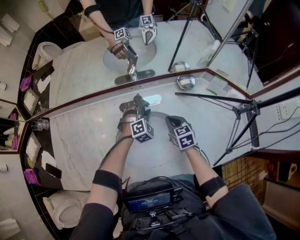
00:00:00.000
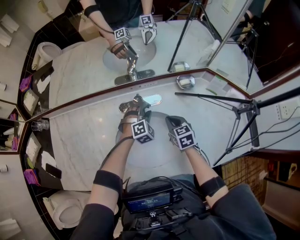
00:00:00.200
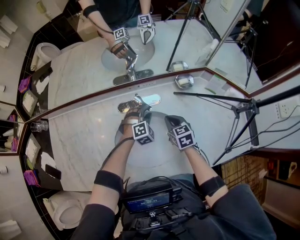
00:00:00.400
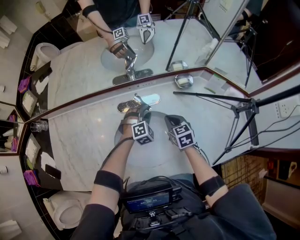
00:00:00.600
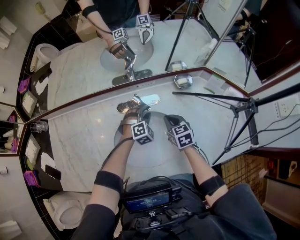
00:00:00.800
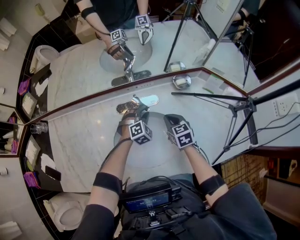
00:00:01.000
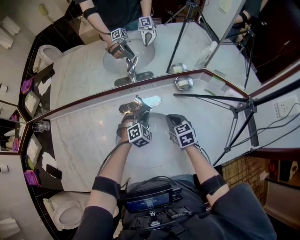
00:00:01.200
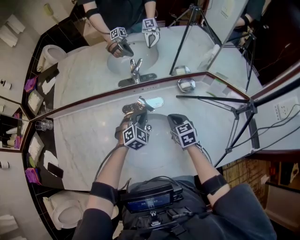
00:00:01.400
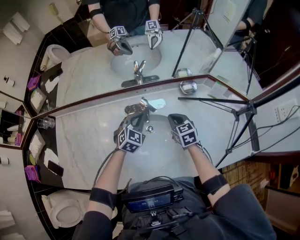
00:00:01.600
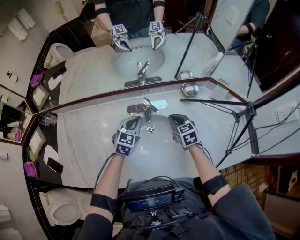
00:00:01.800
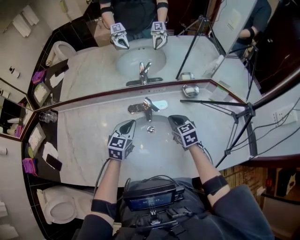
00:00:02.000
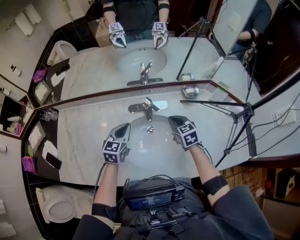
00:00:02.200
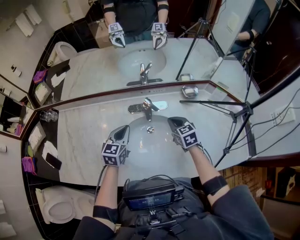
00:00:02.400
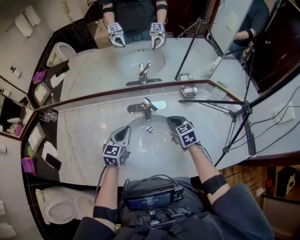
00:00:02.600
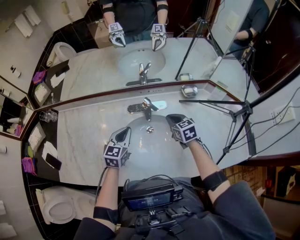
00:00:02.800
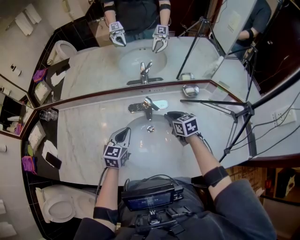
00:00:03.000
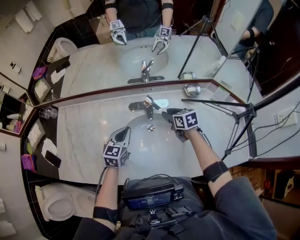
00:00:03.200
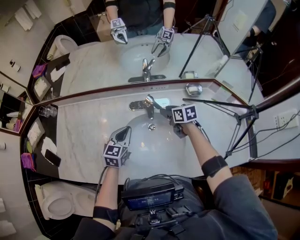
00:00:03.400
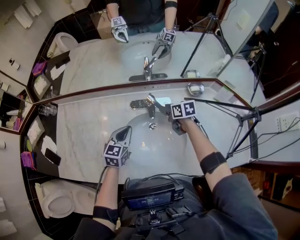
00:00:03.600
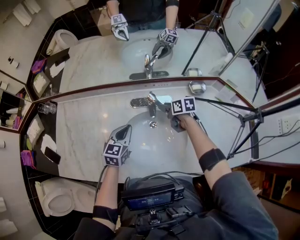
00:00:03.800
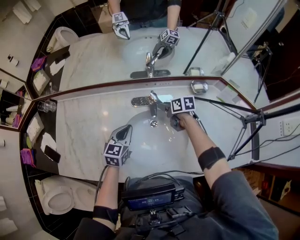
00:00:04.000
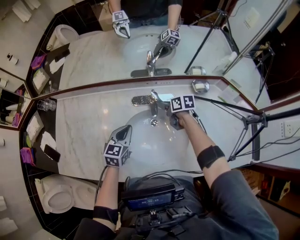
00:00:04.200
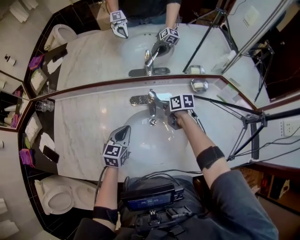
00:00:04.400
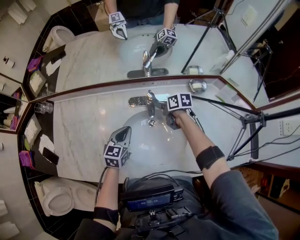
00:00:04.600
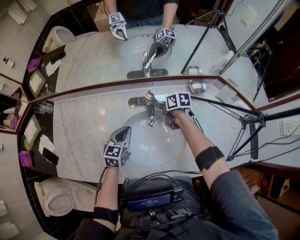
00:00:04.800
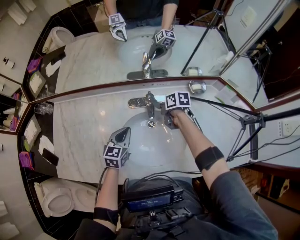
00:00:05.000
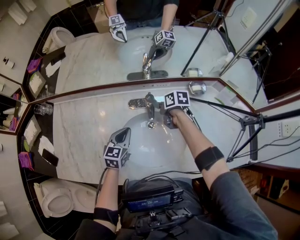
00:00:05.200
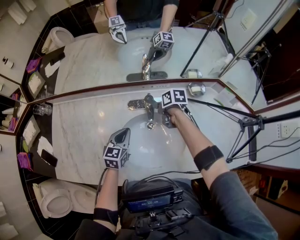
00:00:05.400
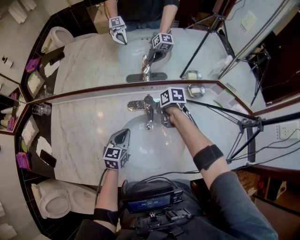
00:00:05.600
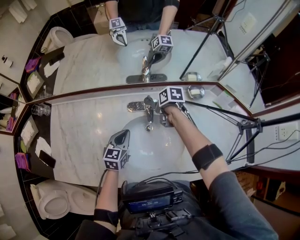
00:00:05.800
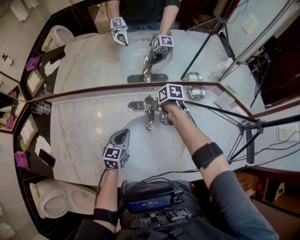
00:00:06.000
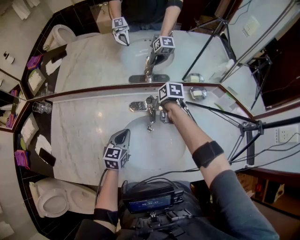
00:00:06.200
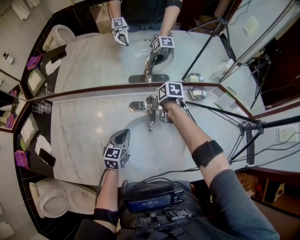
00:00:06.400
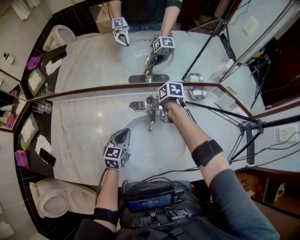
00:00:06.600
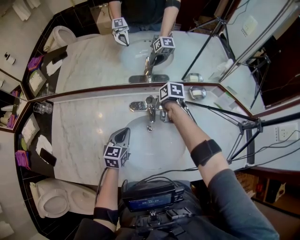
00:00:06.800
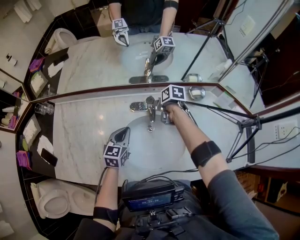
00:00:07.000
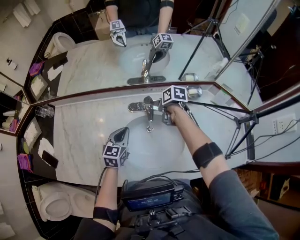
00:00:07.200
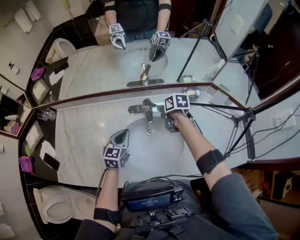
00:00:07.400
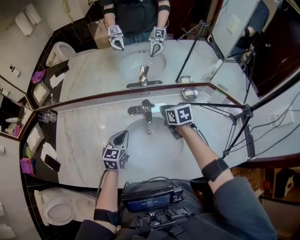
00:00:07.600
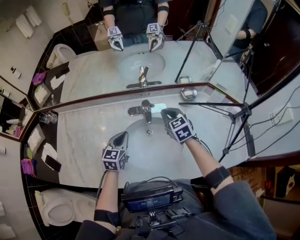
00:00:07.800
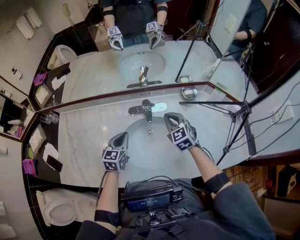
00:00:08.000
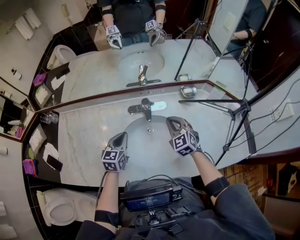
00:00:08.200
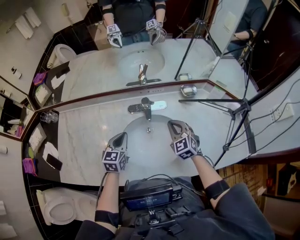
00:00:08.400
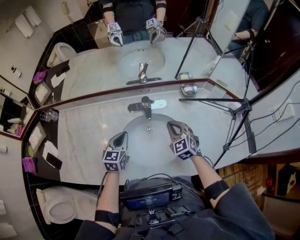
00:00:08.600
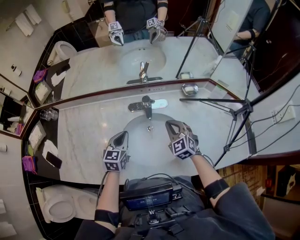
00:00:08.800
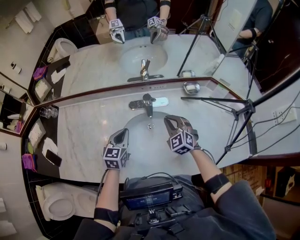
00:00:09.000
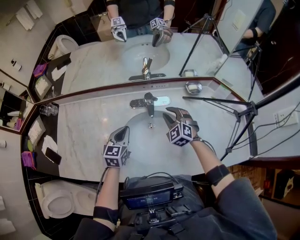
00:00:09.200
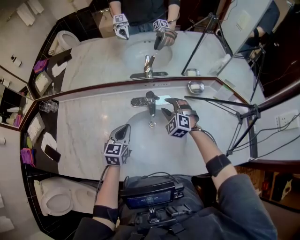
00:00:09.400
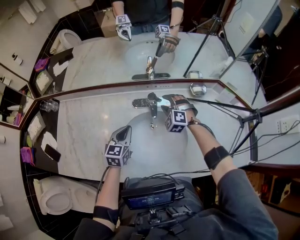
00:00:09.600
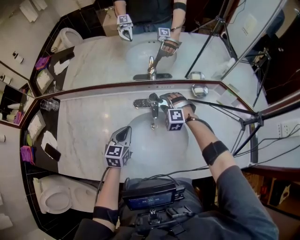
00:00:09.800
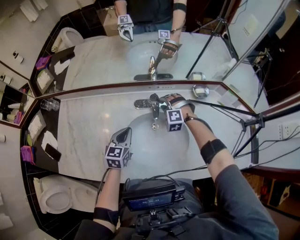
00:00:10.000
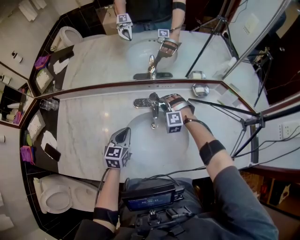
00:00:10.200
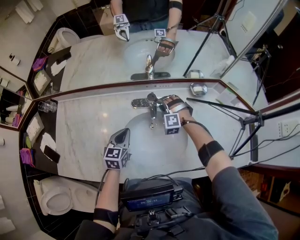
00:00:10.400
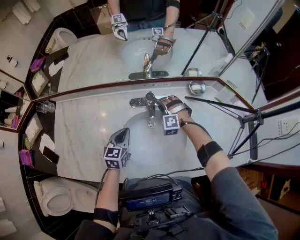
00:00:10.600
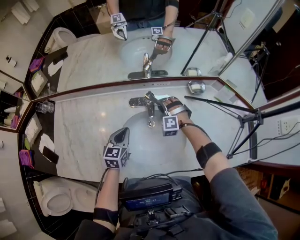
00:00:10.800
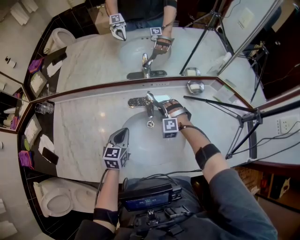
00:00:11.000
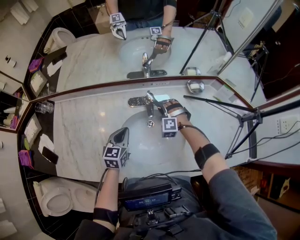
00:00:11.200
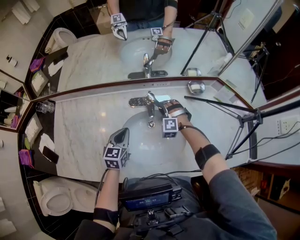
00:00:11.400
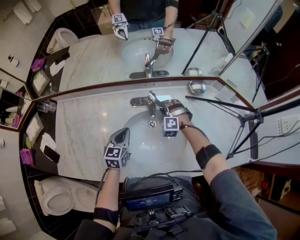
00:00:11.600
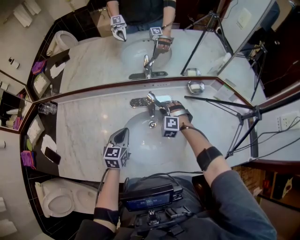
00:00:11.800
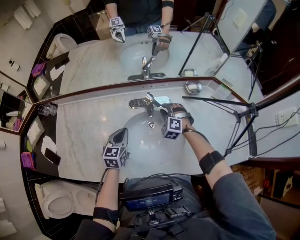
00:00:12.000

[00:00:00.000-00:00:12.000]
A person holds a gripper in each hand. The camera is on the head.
00:00:00.000 to 00:00:01.600: The left gripper travels upward and to the left by about 10 cm, rotates about 30 degrees, and closes up.
00:00:01.600 to 00:00:03.000: The left gripper travels to the left and backward by some 15 cm, and changes its angle by some 30 degrees.
00:00:03.000 to 00:00:04.400: The left gripper moves about 5 cm. Meanwhile the right gripper heads forward and downward, covering about 10 cm, turns by roughly 30 degrees, and opens, then closes once more.
00:00:04.400 to 00:00:06.000: The right gripper swivels roughly 20 degrees.
00:00:06.000 to 00:00:07.600: The right gripper shifts roughly 10 cm upward and backward, and changes its angle by some 30 degrees, while the left gripper shifts by some 5 cm.
00:00:07.600 to 00:00:09.000: The right gripper shifts about 10 cm backward, and rolls counterclockwise, seen from behind, by roughly 50 degrees.
00:00:09.000 to 00:00:10.400: The right gripper heads forward and downward, covering roughly 15 cm, rotates around the line of its fingers by some 50 degrees, counterclockwise from behind, and opens its fingers.
00:00:10.400 to 00:00:12.000: The right gripper ends up approximately 5 cm from where it was, and changes its angle by about 20 degrees.

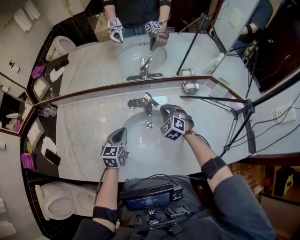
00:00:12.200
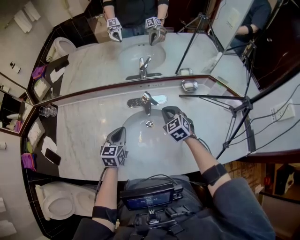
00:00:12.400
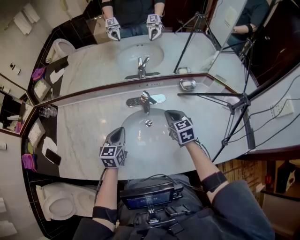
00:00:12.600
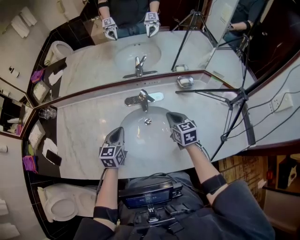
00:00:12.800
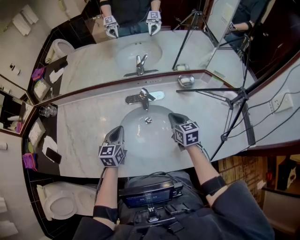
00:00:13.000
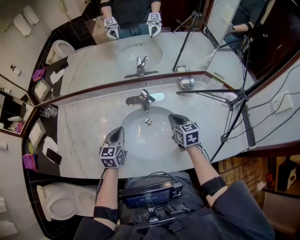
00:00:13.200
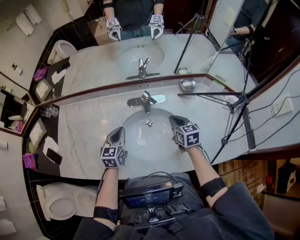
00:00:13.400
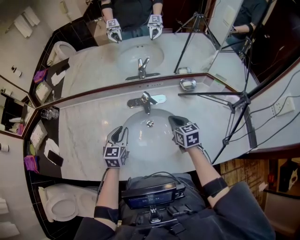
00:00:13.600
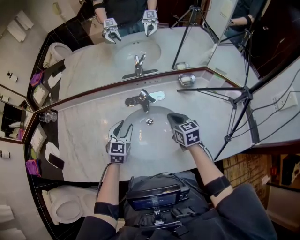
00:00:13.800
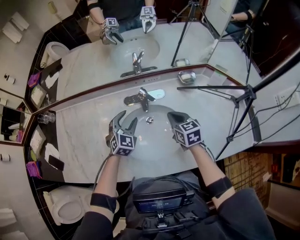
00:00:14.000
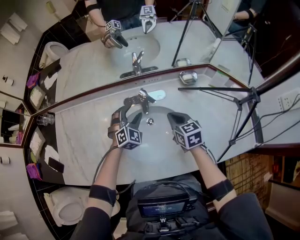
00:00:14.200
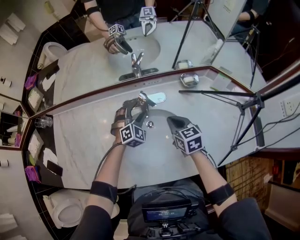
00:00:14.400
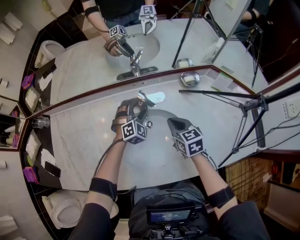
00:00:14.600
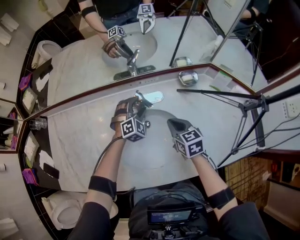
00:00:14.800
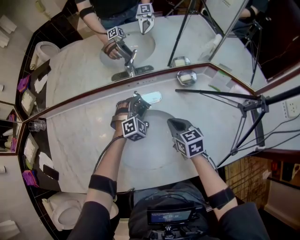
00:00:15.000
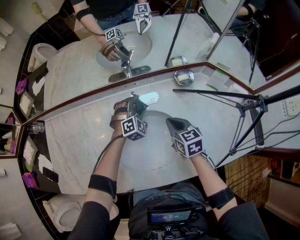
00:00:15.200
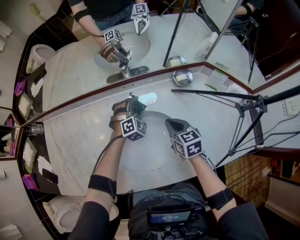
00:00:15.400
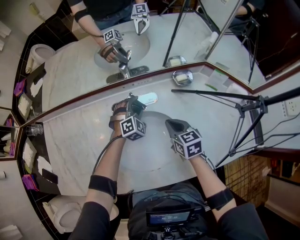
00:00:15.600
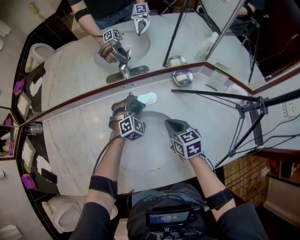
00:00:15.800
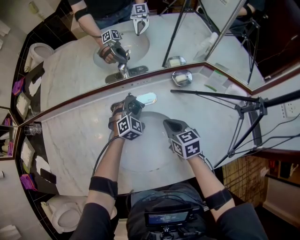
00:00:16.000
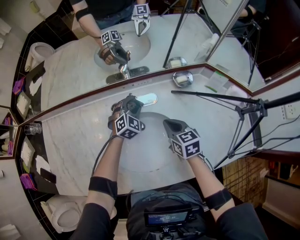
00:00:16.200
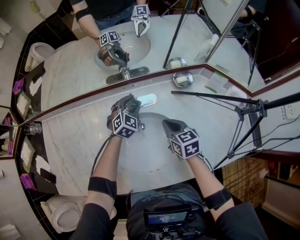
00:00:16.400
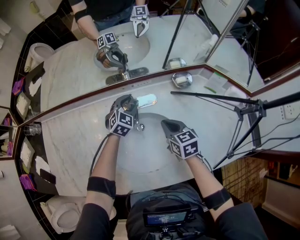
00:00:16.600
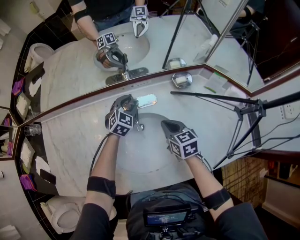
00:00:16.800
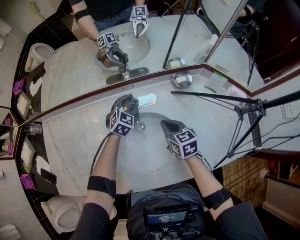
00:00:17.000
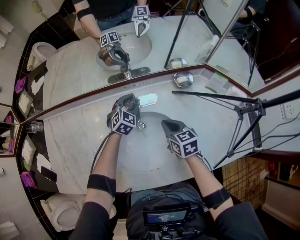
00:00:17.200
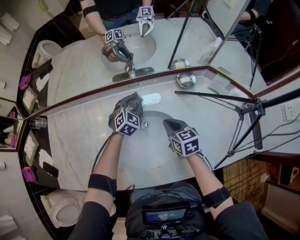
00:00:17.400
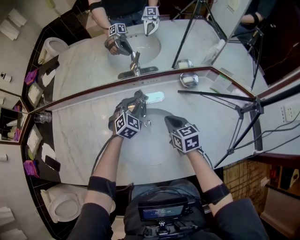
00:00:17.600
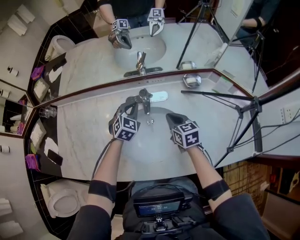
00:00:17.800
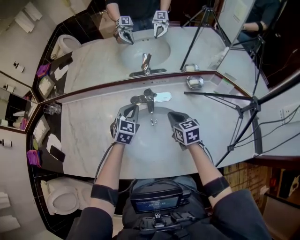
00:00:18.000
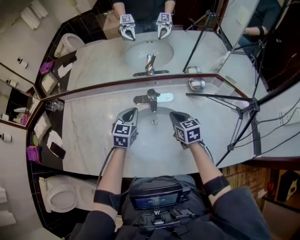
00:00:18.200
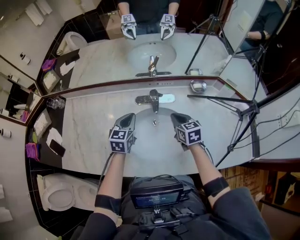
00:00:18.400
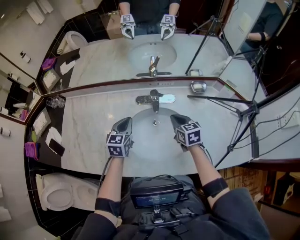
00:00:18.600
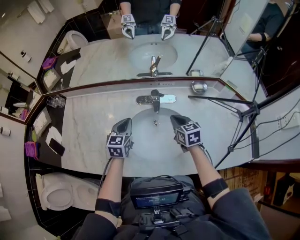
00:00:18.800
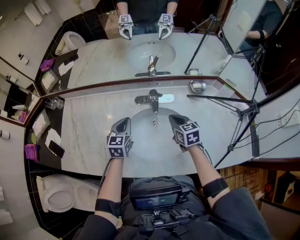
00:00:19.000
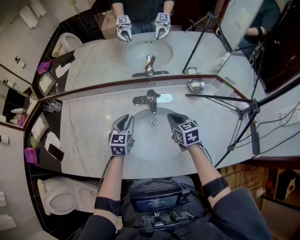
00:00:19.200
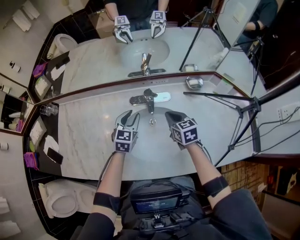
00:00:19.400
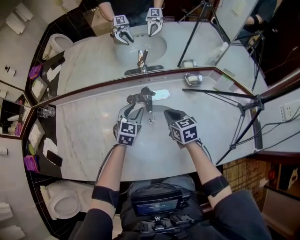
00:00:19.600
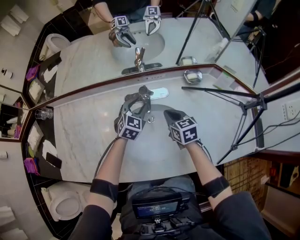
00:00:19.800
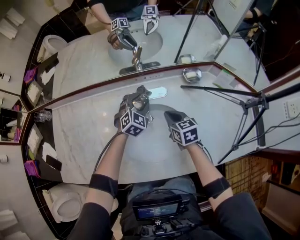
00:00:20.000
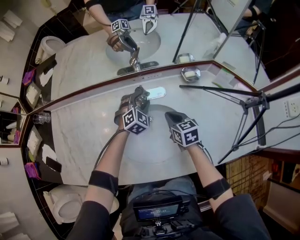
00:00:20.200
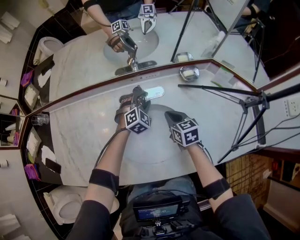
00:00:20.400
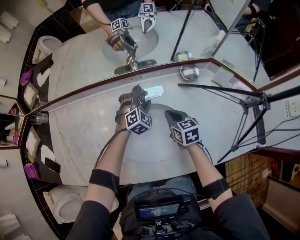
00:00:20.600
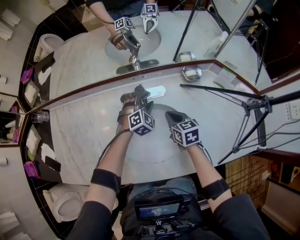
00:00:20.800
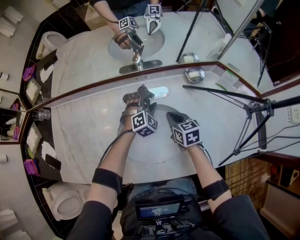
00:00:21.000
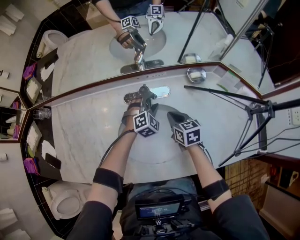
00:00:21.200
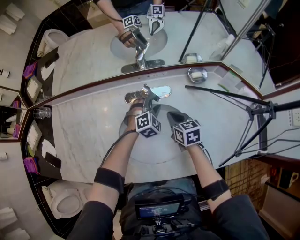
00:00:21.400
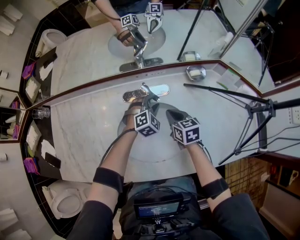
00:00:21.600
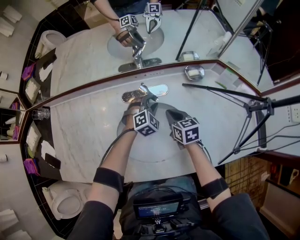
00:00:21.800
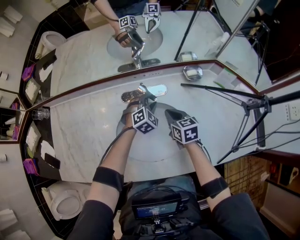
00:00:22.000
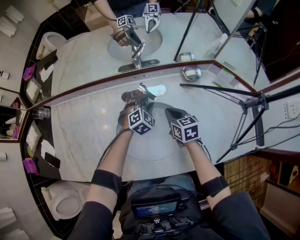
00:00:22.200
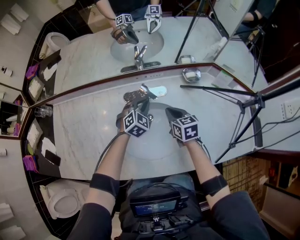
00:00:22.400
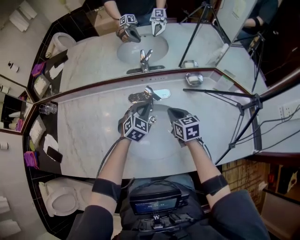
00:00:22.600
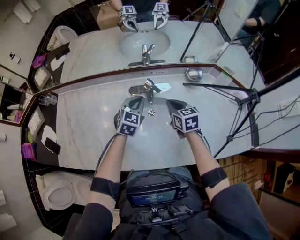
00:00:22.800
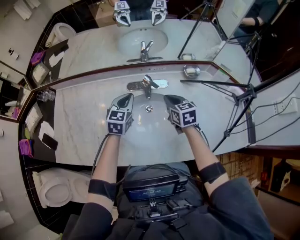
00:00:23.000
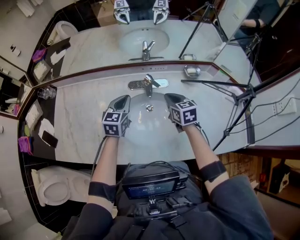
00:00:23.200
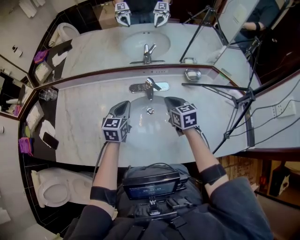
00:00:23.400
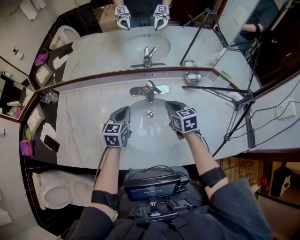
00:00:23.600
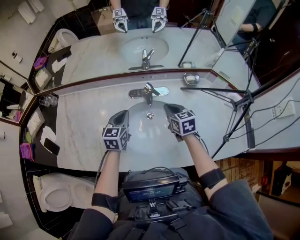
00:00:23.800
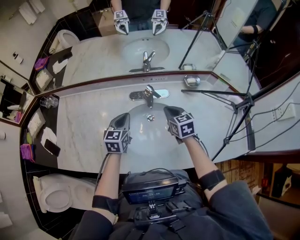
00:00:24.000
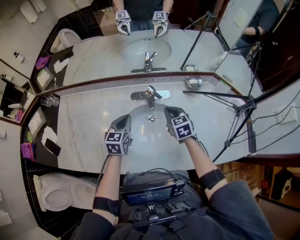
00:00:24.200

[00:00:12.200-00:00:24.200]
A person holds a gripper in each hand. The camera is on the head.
00:00:12.200 to 00:00:13.800: The right gripper goes approximately 10 cm backward, and twists some 50 degrees clockwise, seen from behind; the left gripper opens up.
00:00:13.800 to 00:00:15.200: The right gripper ends up approximately 5 cm from where it was, while the left gripper is displaced to the right, forward and downward by approximately 25 cm, rolls clockwise, seen from behind, by about 50 degrees, and opens.
00:00:15.200 to 00:00:16.600: The left gripper swivels some 30 degrees, and closes up.
00:00:16.600 to 00:00:18.200: The right gripper shifts by some 5 cm; the left gripper heads backward, upward and to the left, covering approximately 20 cm, swivels approximately 30 degrees, and closes its fingers.
00:00:18.200 to 00:00:19.800: The left gripper is displaced downward and to the right by about 10 cm, swivels about 20 degrees, and opens its fingers.
00:00:19.800 to 00:00:21.200: The left gripper moves downward and to the right, roughly 10 cm, and swivels approximately 30 degrees.
00:00:21.200 to 00:00:22.600: The left gripper goes some 10 cm upward and backward, changes its angle by roughly 20 degrees, and closes; the right gripper travels upward by approximately 5 cm.
00:00:22.600 to 00:00:24.200: The left gripper heads to the left and backward, covering roughly 15 cm, and rotates about 40 degrees.
